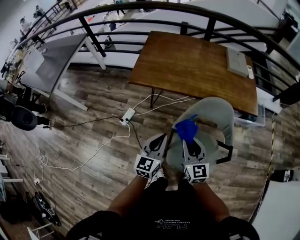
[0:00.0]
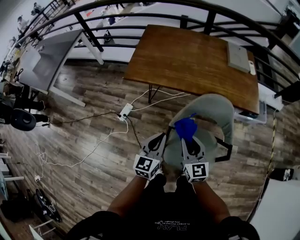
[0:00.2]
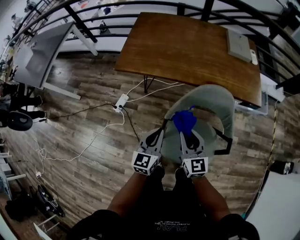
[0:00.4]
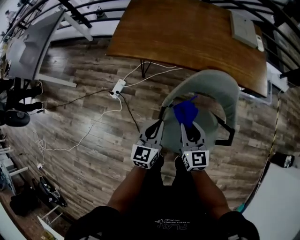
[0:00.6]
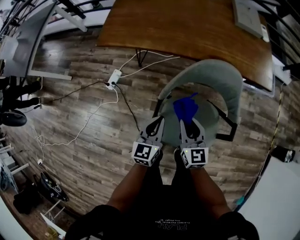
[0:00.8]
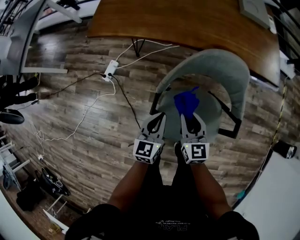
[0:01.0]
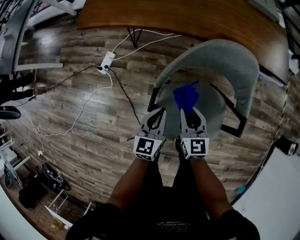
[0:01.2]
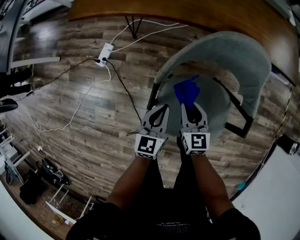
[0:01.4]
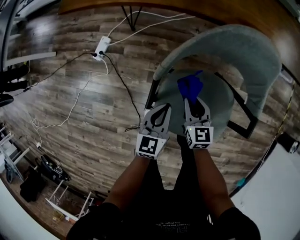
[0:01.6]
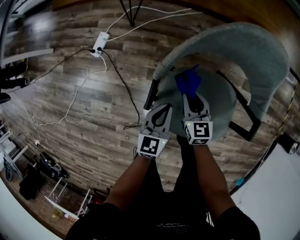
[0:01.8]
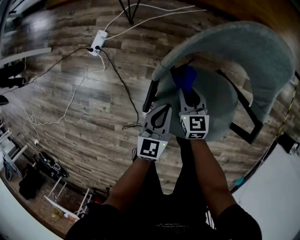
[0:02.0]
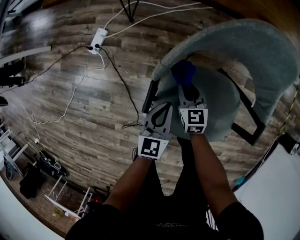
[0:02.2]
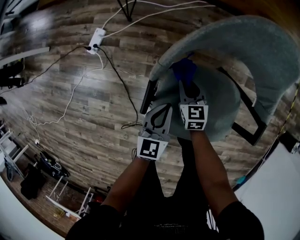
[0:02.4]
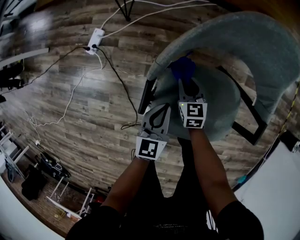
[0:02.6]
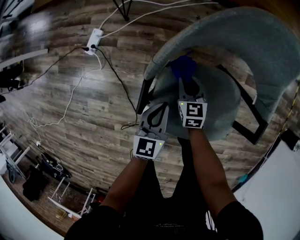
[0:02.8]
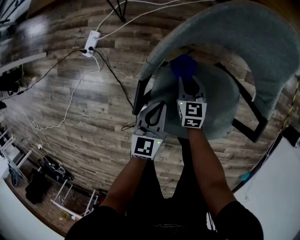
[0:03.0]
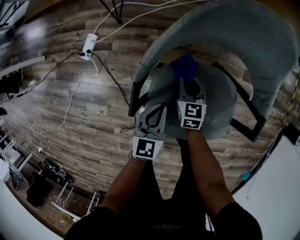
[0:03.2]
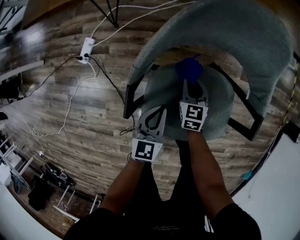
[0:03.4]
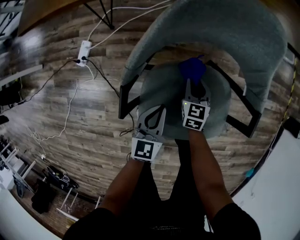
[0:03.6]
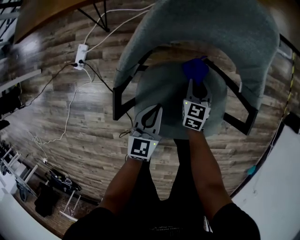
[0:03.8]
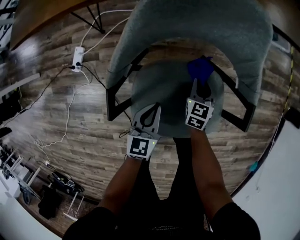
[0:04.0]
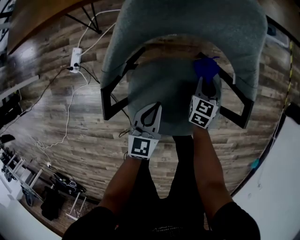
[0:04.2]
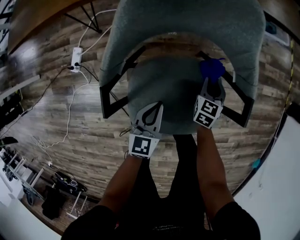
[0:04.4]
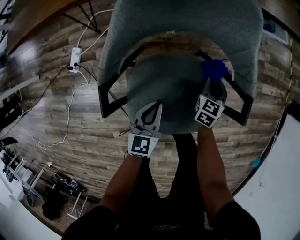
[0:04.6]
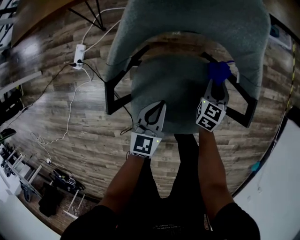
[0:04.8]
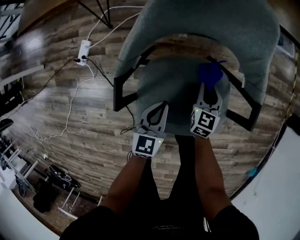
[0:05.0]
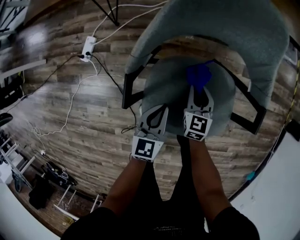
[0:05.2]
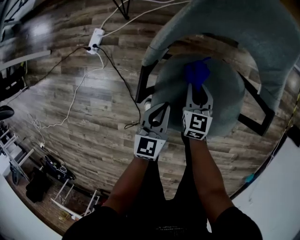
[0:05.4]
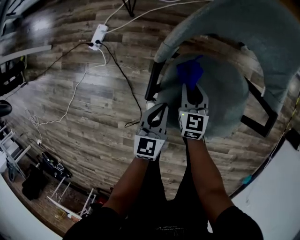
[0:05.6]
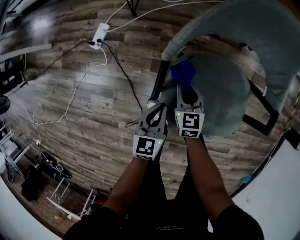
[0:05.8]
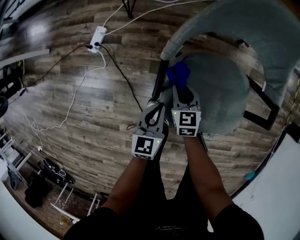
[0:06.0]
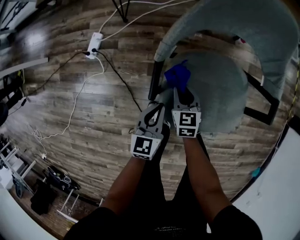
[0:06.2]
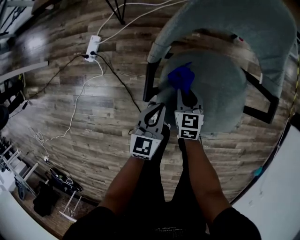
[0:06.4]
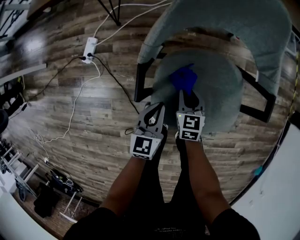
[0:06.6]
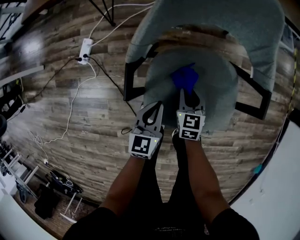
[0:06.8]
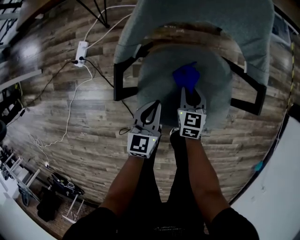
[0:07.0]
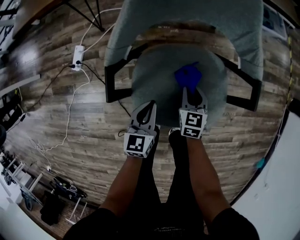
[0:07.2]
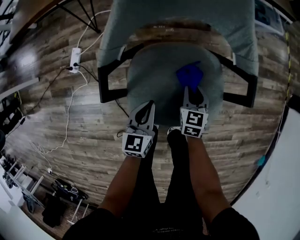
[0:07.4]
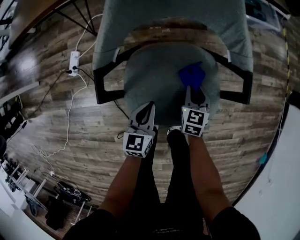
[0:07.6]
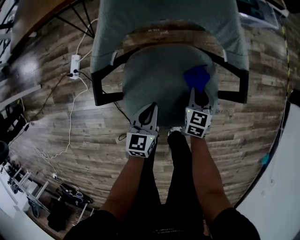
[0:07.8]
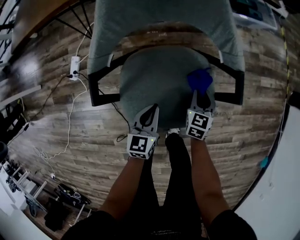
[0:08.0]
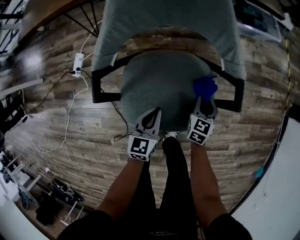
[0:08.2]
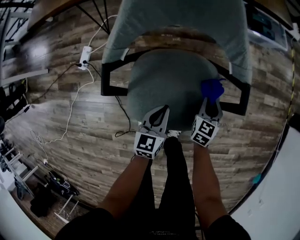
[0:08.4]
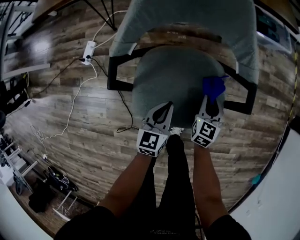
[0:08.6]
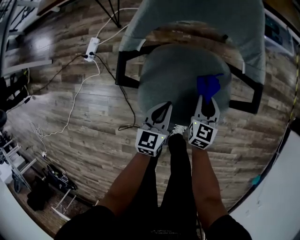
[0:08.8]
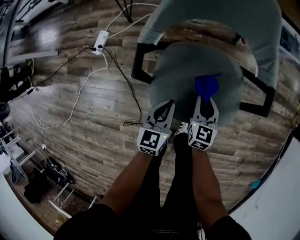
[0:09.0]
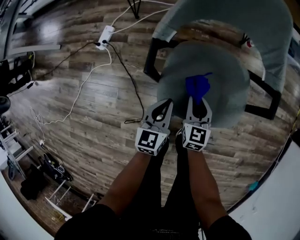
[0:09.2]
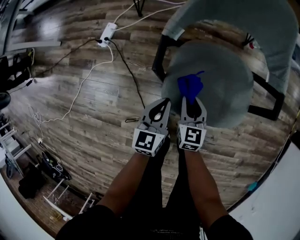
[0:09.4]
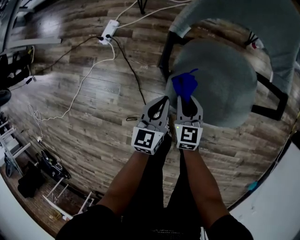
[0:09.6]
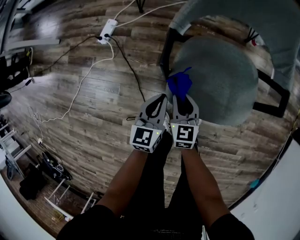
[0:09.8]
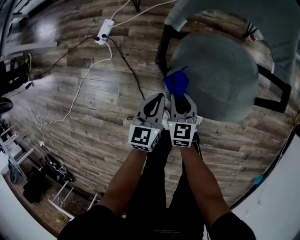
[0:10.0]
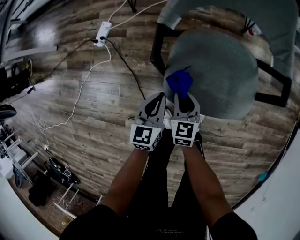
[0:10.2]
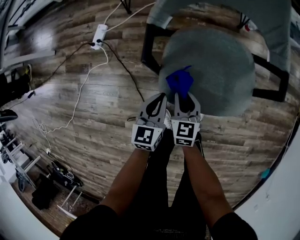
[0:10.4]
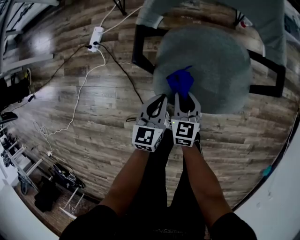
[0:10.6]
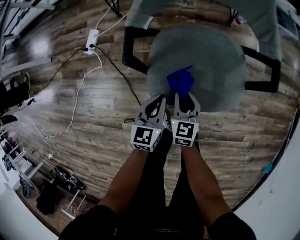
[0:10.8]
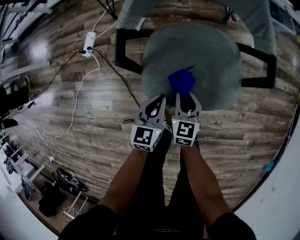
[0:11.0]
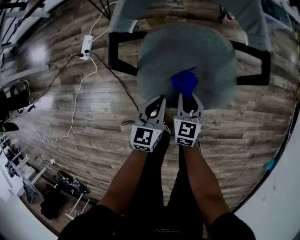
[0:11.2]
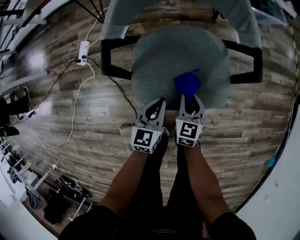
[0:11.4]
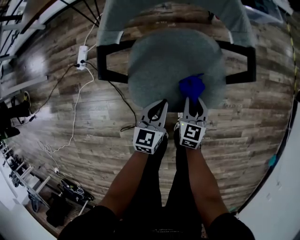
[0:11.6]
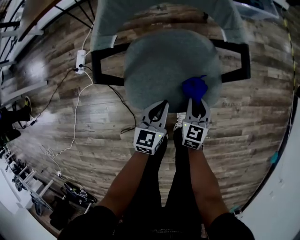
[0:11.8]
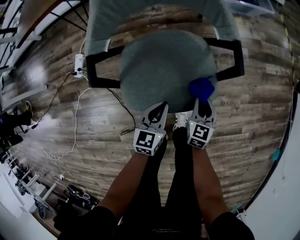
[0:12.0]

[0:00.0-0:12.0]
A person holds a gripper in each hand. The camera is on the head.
0:00.0 to 0:01.6: Both grippers move downward, about 35 cm. The right gripper turns by roughly 20 degrees.
0:01.6 to 0:03.0: The left gripper heads downward, covering some 5 cm, while the right gripper shifts roughly 10 cm downward.
0:03.0 to 0:04.4: The left gripper shifts by approximately 10 cm. The right gripper shifts by roughly 25 cm, and swivels some 30 degrees.
0:04.4 to 0:06.0: The left gripper moves roughly 15 cm; the right gripper ends up some 30 cm from where it was, and changes its angle by roughly 30 degrees.
0:06.0 to 0:07.6: The left gripper goes roughly 15 cm to the right; the right gripper moves to the right, about 25 cm, and rotates some 20 degrees.
0:07.6 to 0:09.0: The right gripper travels to the left and backward by about 10 cm; the left gripper travels to the right and back again, roughly 5 cm each way.
0:09.0 to 0:10.4: The left gripper goes about 10 cm to the left, while the right gripper goes about 15 cm to the left and backward.
0:10.4 to 0:12.0: Both grippers travel together to the right, about 20 cm. The right gripper changes its angle by about 30 degrees.

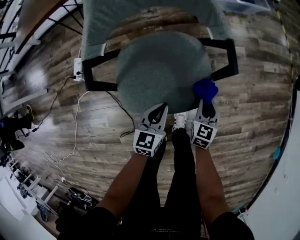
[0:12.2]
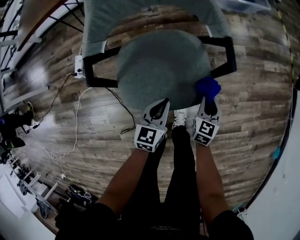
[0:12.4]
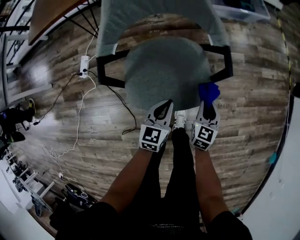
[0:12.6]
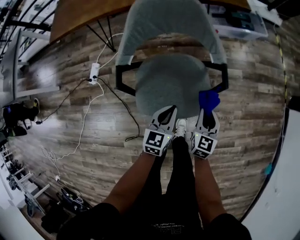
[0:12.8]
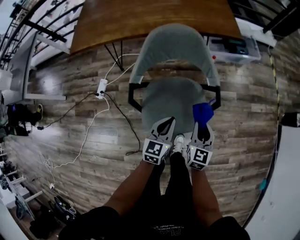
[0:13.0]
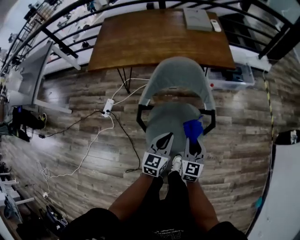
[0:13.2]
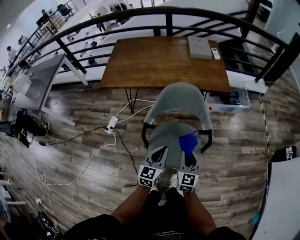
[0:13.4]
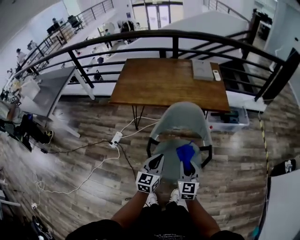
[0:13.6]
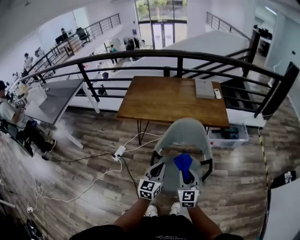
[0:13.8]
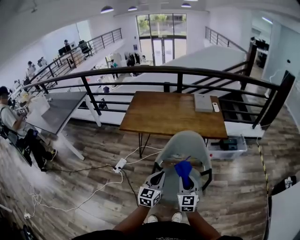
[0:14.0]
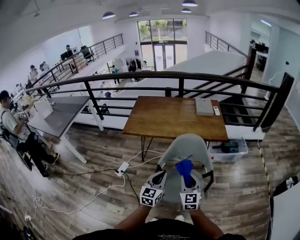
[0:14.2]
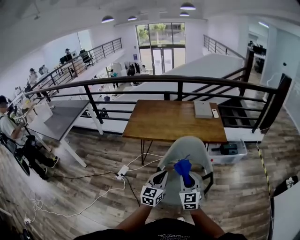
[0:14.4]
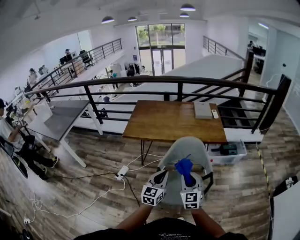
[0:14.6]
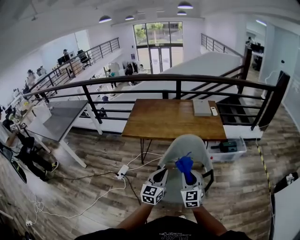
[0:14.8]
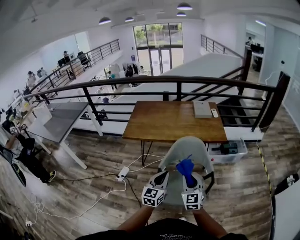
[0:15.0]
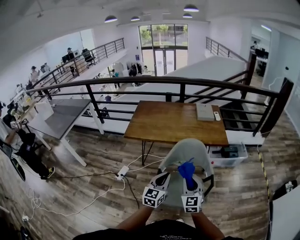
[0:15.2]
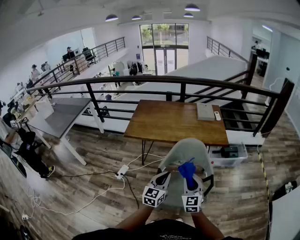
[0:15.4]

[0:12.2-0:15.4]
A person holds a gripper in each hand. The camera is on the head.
0:12.2 to 0:13.8: The grippers both shift upward by about 40 cm. The right gripper angles its fingers upward, by some 30 degrees. Meanwhile the left gripper turns by some 30 degrees.
0:13.8 to 0:15.4: Both grippers move upward, some 5 cm.

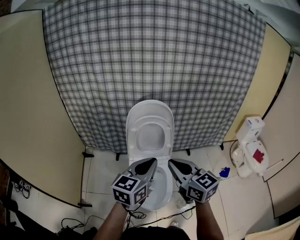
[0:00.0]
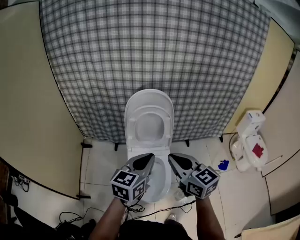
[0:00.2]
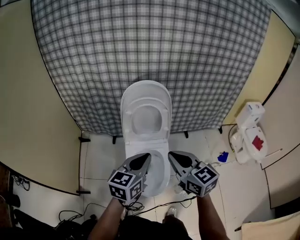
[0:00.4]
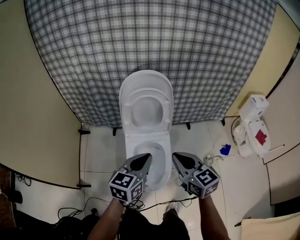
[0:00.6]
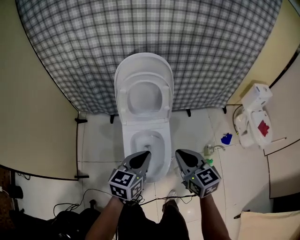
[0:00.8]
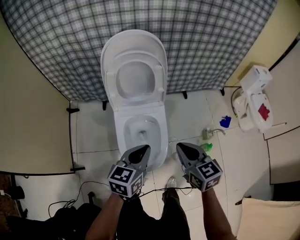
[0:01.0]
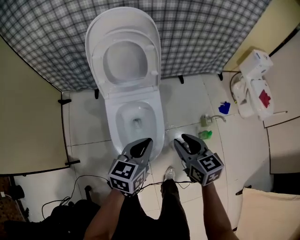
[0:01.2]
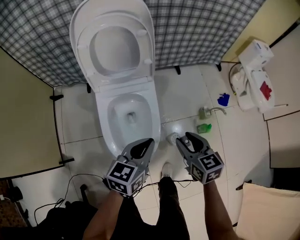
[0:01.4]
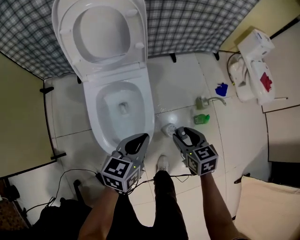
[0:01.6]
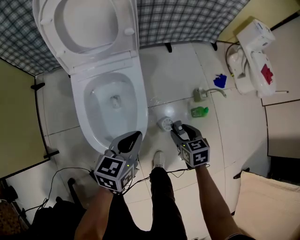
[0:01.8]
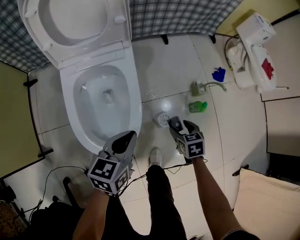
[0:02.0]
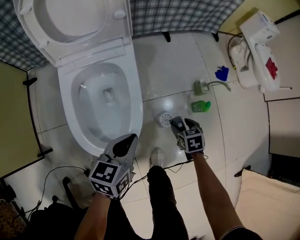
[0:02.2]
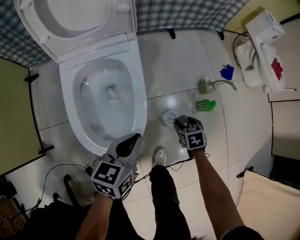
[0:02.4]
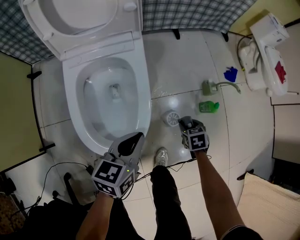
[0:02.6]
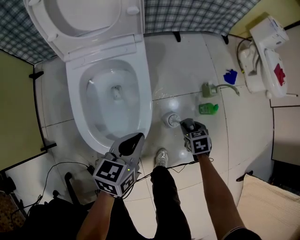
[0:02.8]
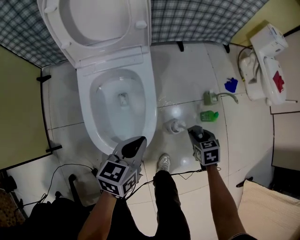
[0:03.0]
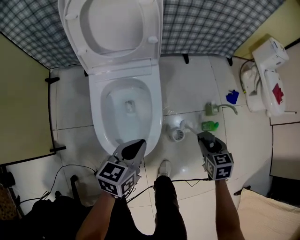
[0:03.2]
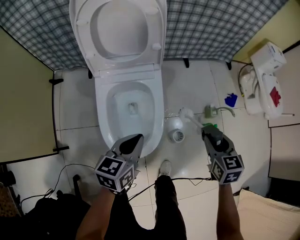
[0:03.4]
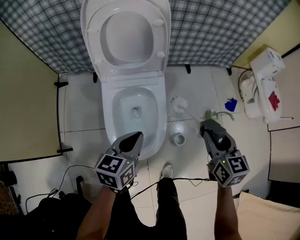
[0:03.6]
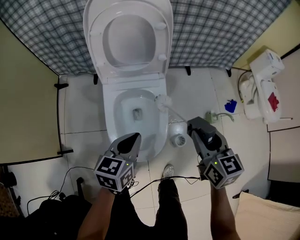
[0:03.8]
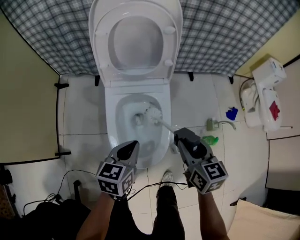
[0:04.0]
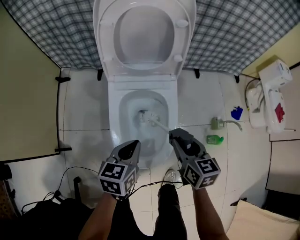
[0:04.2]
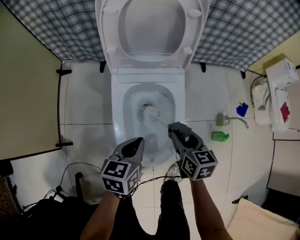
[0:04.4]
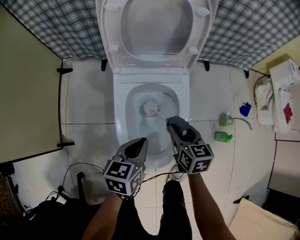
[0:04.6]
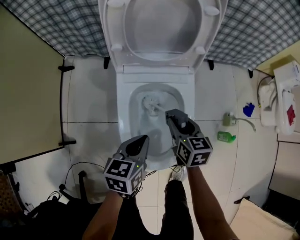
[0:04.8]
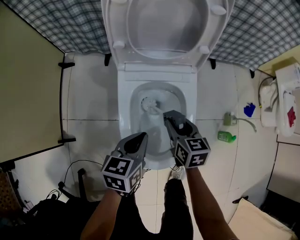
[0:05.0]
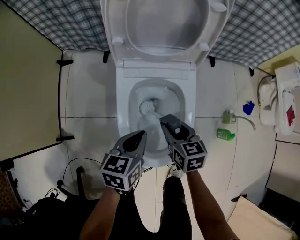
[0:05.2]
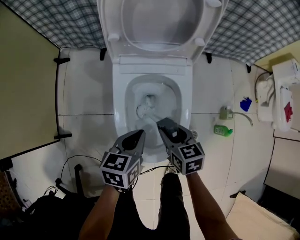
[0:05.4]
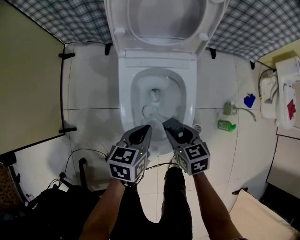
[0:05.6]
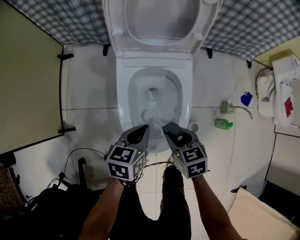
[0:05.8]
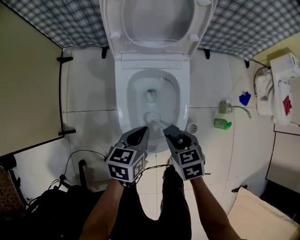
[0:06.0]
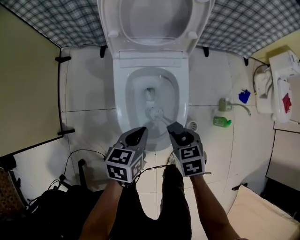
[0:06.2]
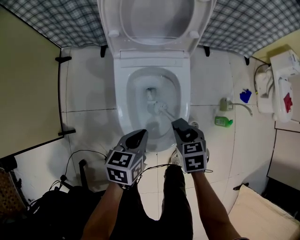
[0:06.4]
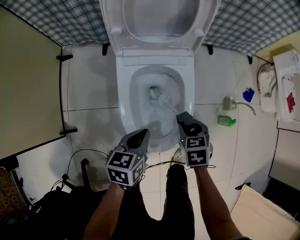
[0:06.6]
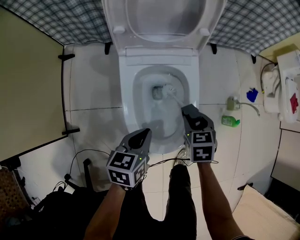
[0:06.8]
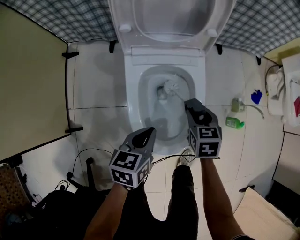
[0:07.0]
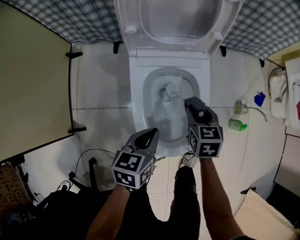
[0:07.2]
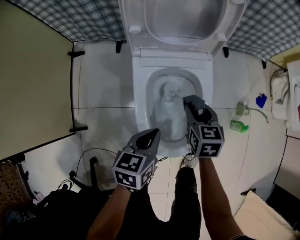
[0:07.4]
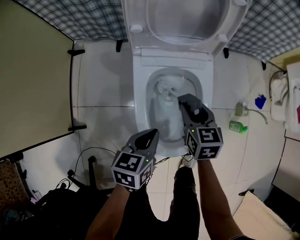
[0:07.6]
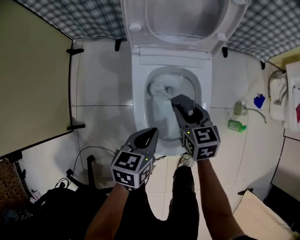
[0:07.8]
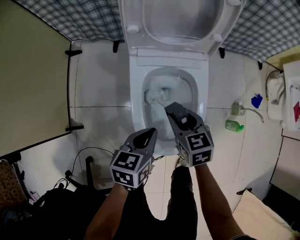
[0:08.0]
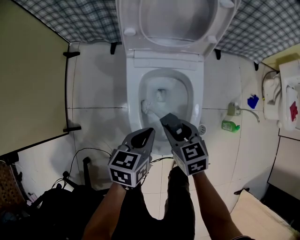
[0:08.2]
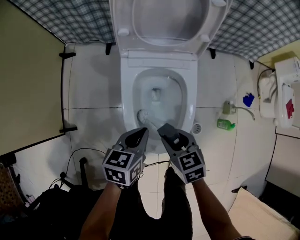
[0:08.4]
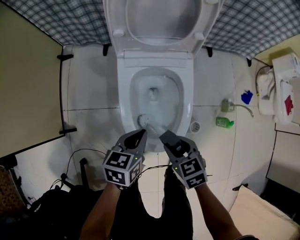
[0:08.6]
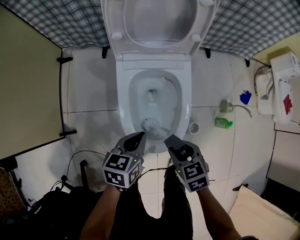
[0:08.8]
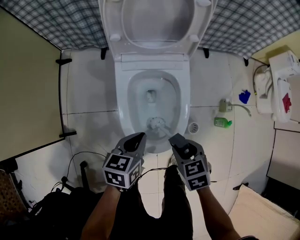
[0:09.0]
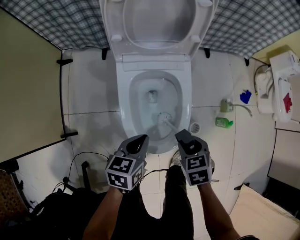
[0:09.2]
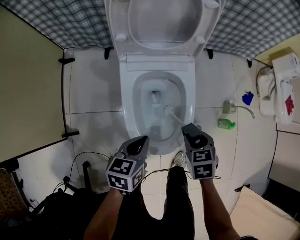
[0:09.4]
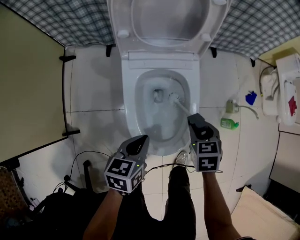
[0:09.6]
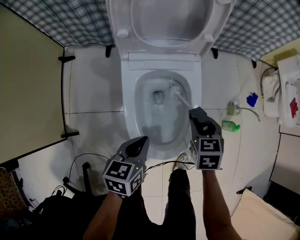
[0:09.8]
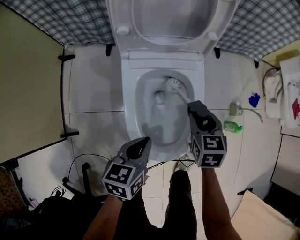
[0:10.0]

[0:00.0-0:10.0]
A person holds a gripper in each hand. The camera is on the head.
0:00.0 to 0:01.4: The left gripper moves downward, approximately 30 cm. Meanwhile the right gripper is displaced downward and to the right by approximately 40 cm, changes its angle by roughly 30 degrees, and opens up.
0:01.4 to 0:02.8: The left gripper moves downward, about 15 cm, while the right gripper is displaced downward and to the right by some 35 cm, angles its fingers downward, by some 30 degrees, and opens, then closes once more.
0:02.8 to 0:04.2: The left gripper travels to the left and upward by some 15 cm. The right gripper moves upward and to the left, roughly 35 cm, and points its fingers approximately 30 degrees further upward.
0:04.2 to 0:05.8: The right gripper travels downward and to the left by some 10 cm, reaches about 10 cm forward, then returns, and changes its angle by about 20 degrees.
0:05.8 to 0:07.2: The right gripper goes some 10 cm forward.
0:07.2 to 0:08.6: The right gripper goes some 15 cm backward, and turns by some 20 degrees.
0:08.6 to 0:10.0: The right gripper goes roughly 15 cm forward, and changes its angle by about 30 degrees.
